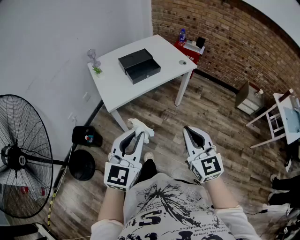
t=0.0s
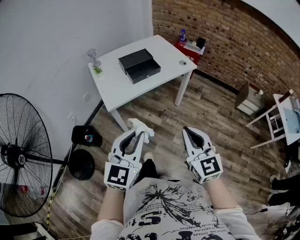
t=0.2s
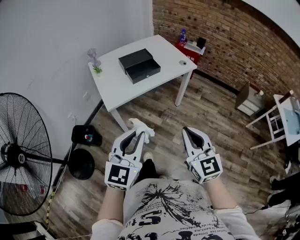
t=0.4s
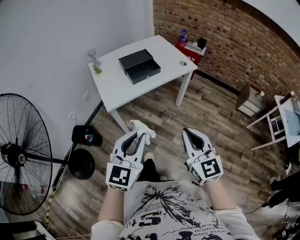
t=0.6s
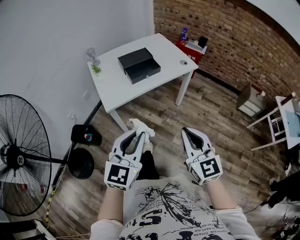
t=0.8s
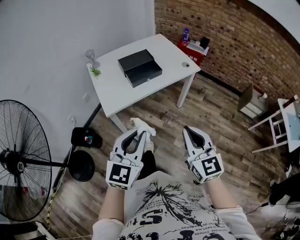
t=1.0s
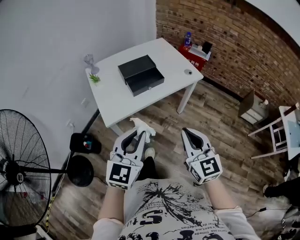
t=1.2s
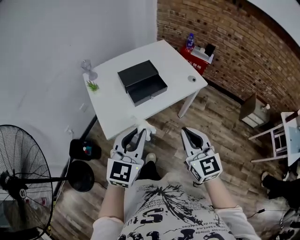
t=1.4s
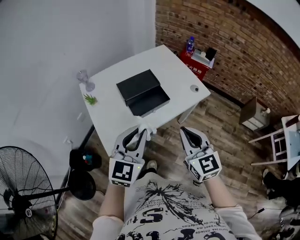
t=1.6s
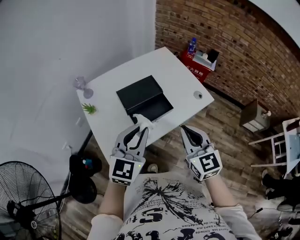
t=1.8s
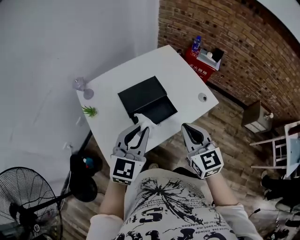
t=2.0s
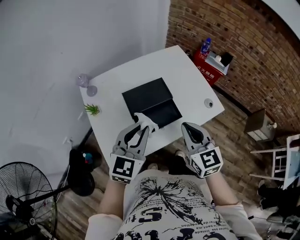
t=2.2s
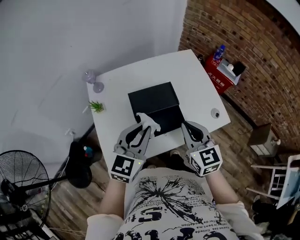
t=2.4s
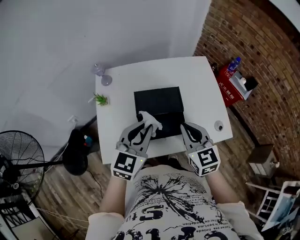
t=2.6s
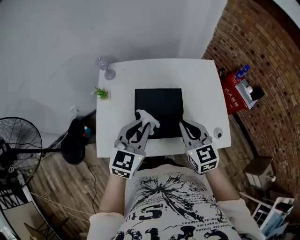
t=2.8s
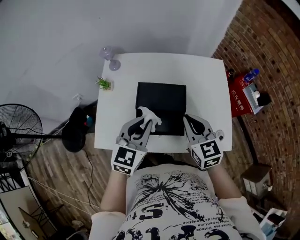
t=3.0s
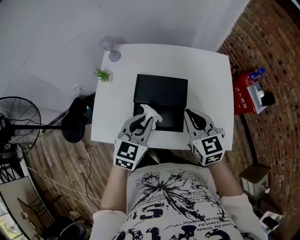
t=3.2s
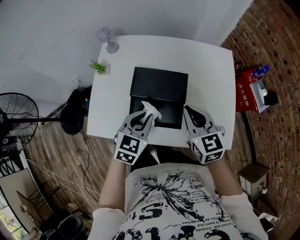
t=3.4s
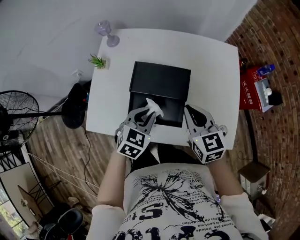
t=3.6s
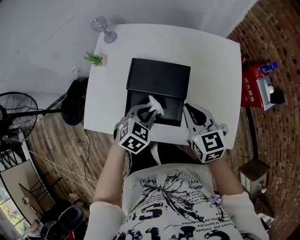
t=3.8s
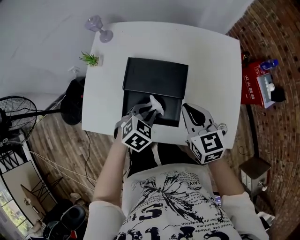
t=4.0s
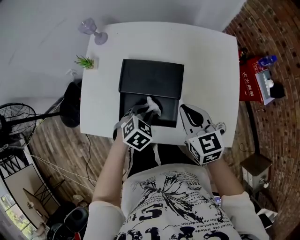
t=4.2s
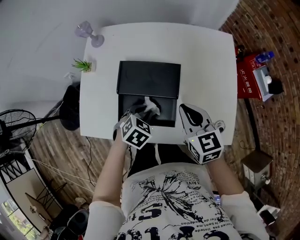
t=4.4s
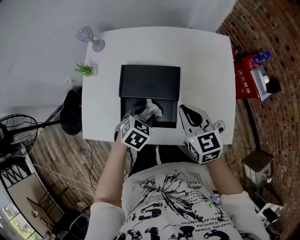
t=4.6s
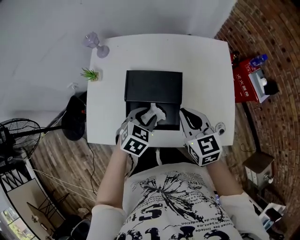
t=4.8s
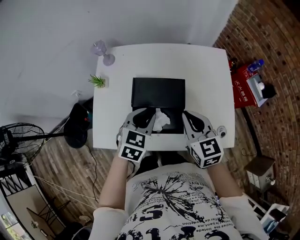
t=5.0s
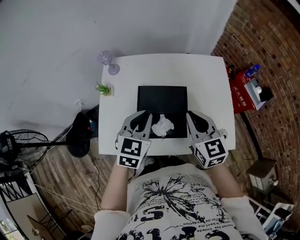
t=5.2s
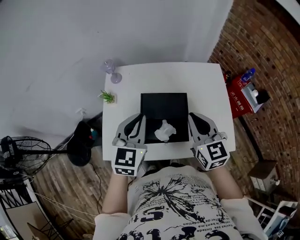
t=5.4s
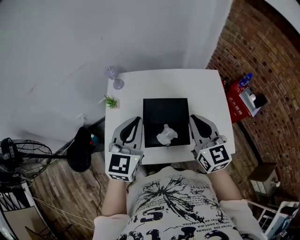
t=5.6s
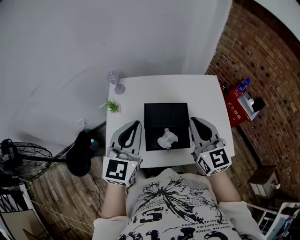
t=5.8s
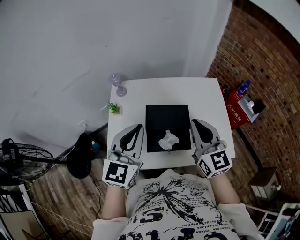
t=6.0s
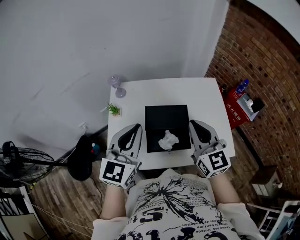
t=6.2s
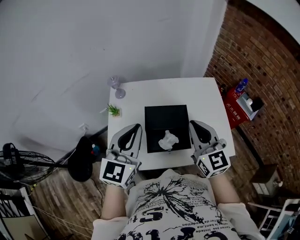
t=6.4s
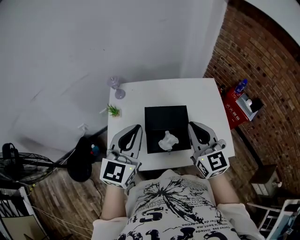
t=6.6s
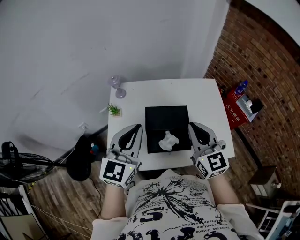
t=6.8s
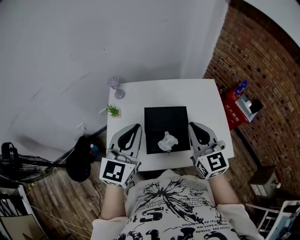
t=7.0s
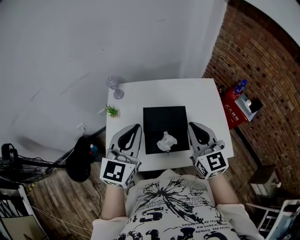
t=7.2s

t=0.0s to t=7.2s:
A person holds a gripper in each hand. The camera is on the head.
t=0.0s to t=1.4s: The two grippers go roughly 25 cm forward.
t=1.4s to t=2.8s: The left gripper ends up roughly 40 cm from where it was, and rotates roughly 30 degrees, while the right gripper ends up about 40 cm from where it was, and swivels some 30 degrees.
t=2.8s to t=4.4s: The left gripper travels downward by roughly 25 cm, and points its fingers about 40 degrees further downward; the right gripper travels downward, to the right and forward by roughly 15 cm.
t=4.4s to t=5.8s: The right gripper shifts some 25 cm upward and to the left, and swivels roughly 30 degrees. Meanwhile the left gripper moves upward and to the left, roughly 40 cm, tips its fingers upward by approximately 60 degrees, and closes its fingers.
t=5.8s to t=7.2s: The grippers make only small movements.

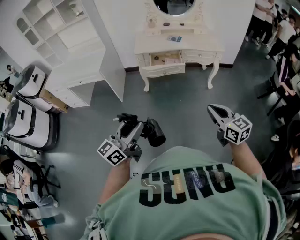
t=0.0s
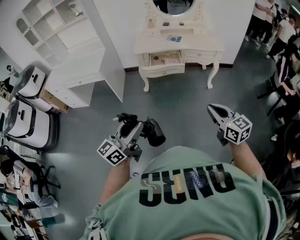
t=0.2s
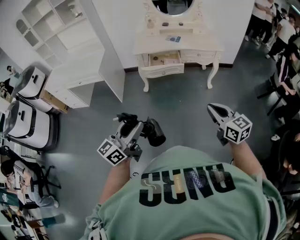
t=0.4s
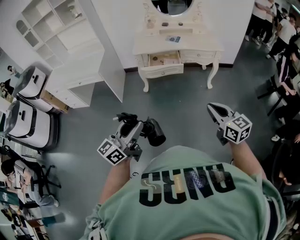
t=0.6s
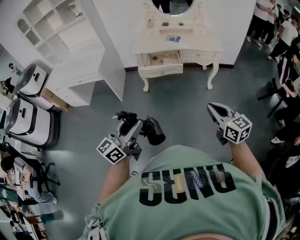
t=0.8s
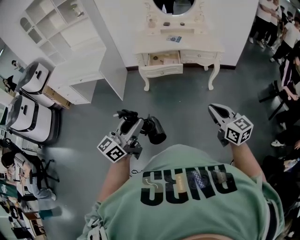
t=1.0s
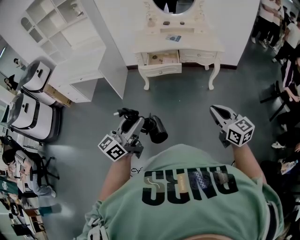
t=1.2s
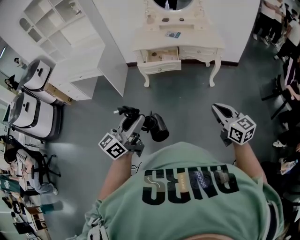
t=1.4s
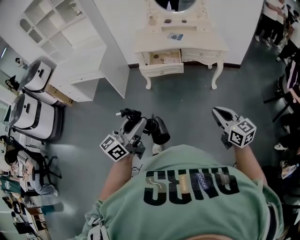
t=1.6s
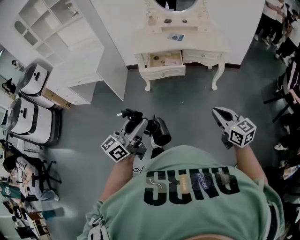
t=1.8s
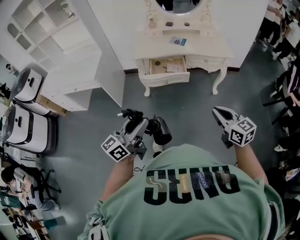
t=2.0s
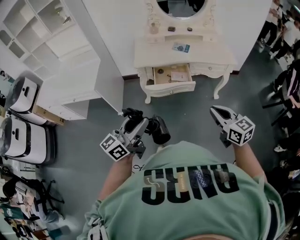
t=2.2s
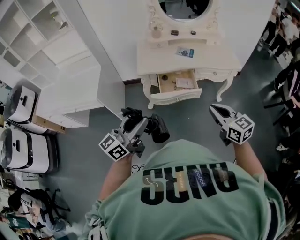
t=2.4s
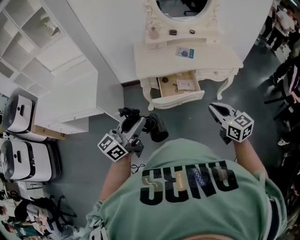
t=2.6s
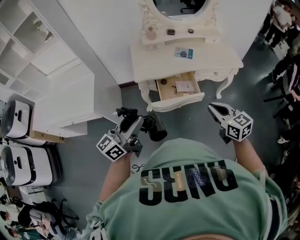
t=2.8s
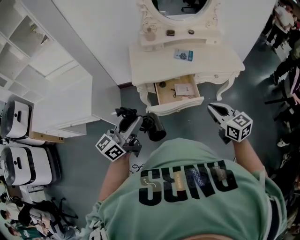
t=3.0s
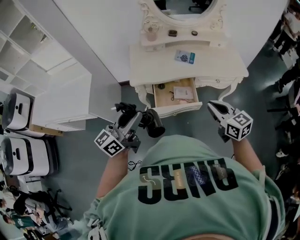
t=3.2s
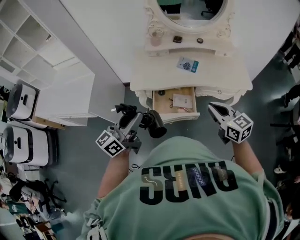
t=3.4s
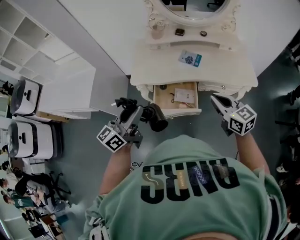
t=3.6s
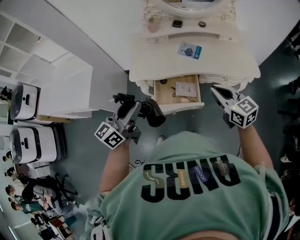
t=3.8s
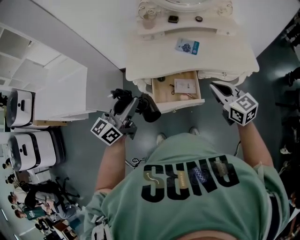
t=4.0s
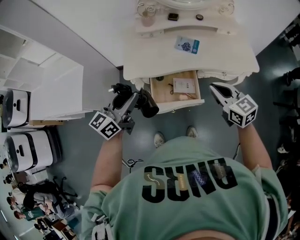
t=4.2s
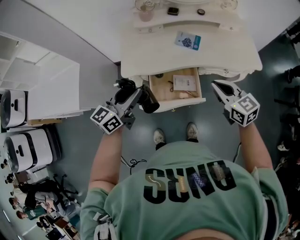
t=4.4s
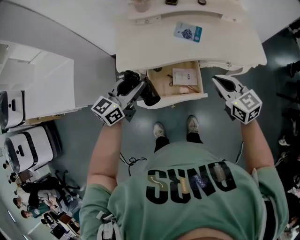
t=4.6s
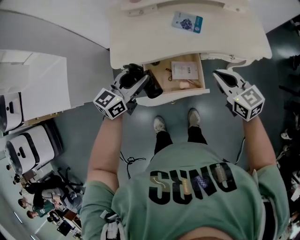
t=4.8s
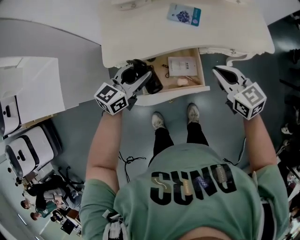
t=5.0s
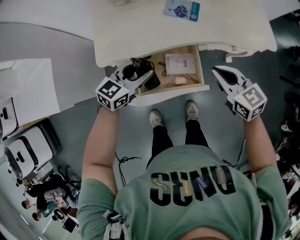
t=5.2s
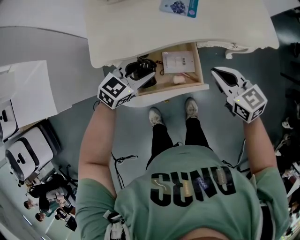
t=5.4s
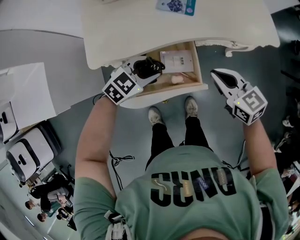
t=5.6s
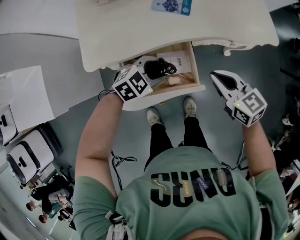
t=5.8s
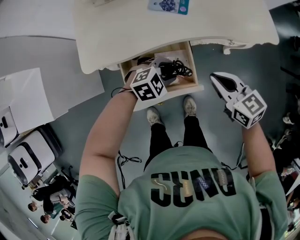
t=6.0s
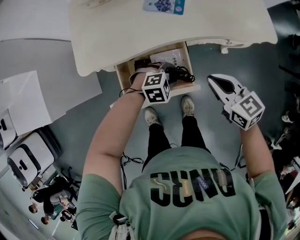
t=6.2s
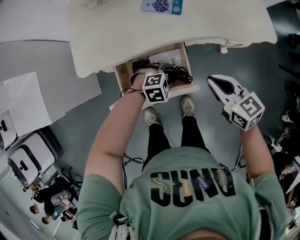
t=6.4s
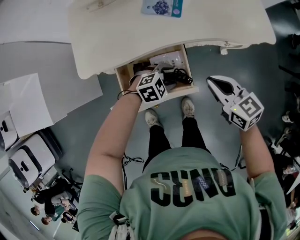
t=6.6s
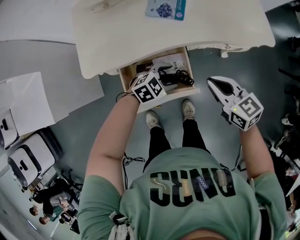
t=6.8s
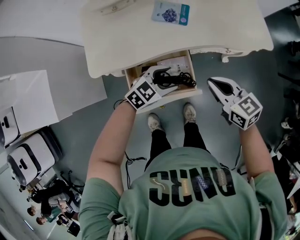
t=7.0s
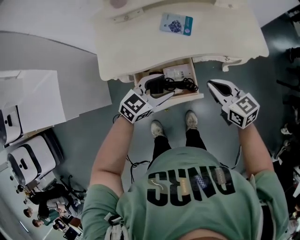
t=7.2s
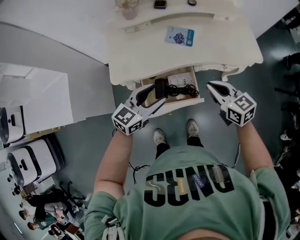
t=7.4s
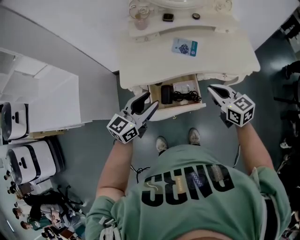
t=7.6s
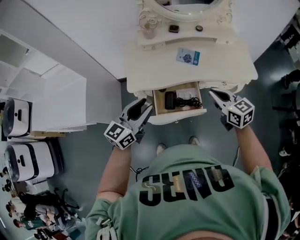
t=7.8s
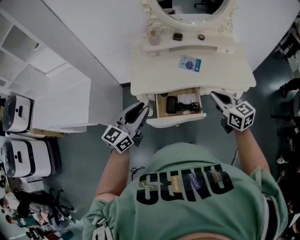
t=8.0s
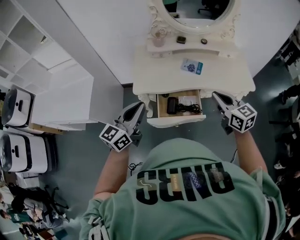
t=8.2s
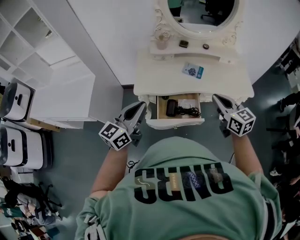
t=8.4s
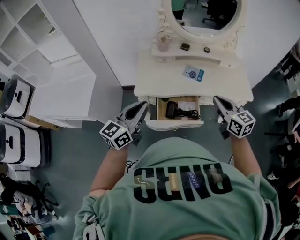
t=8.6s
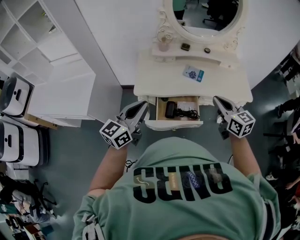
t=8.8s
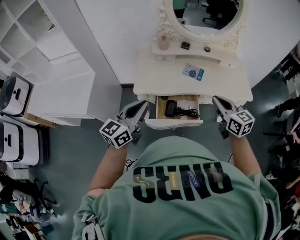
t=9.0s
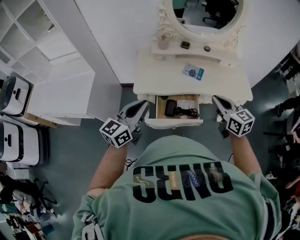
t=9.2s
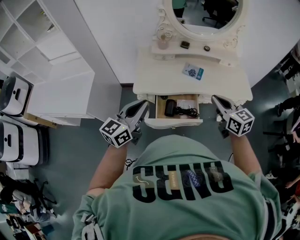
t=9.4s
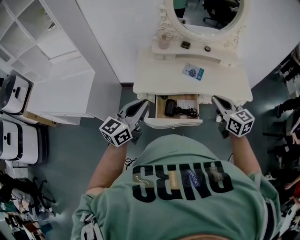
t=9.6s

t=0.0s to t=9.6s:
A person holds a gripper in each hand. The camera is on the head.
t=0.0s to t=1.6s: The left gripper goes some 15 cm to the right and forward; the right gripper is displaced to the right by some 10 cm.
t=1.6s to t=3.2s: The pair of grippers is taken forward and to the left, about 50 cm.
t=3.2s to t=4.8s: The grippers both shift forward and downward by approximately 25 cm. The left gripper swivels some 30 degrees.
t=4.8s to t=6.4s: The left gripper travels downward by approximately 30 cm, and points its fingers roughly 50 degrees further downward. Meanwhile the right gripper goes roughly 10 cm downward.
t=6.4s to t=8.0s: The left gripper shifts about 40 cm upward, tips its fingers upward by about 60 degrees, and closes up. The right gripper moves upward, approximately 25 cm.
t=8.0s to t=9.6s: The grippers make only small movements.

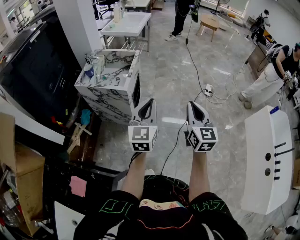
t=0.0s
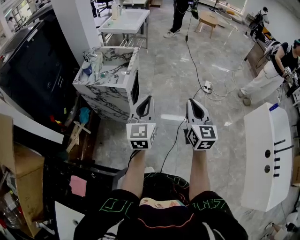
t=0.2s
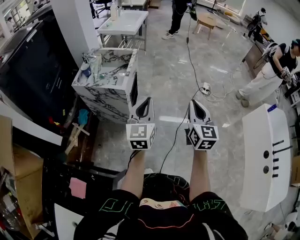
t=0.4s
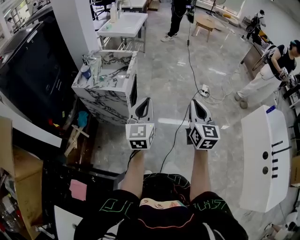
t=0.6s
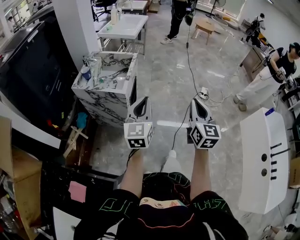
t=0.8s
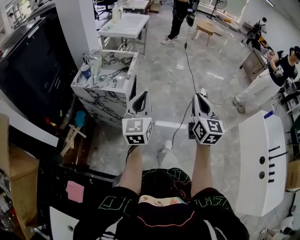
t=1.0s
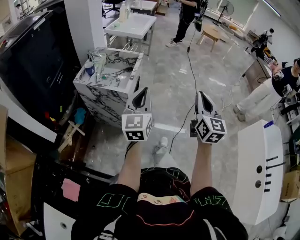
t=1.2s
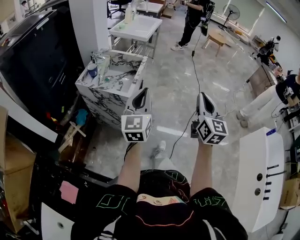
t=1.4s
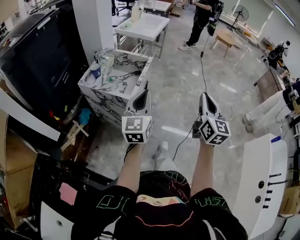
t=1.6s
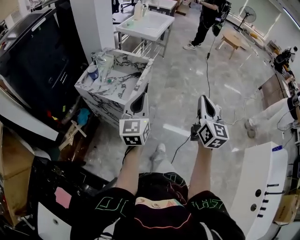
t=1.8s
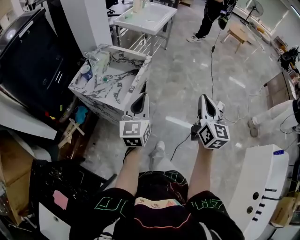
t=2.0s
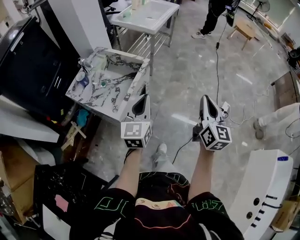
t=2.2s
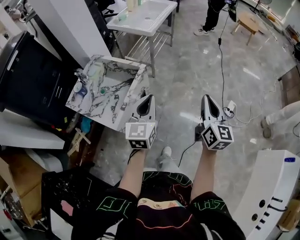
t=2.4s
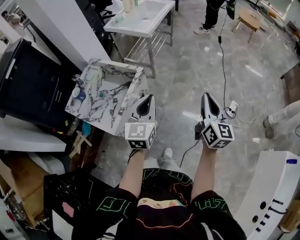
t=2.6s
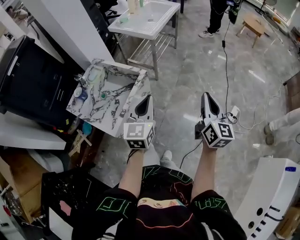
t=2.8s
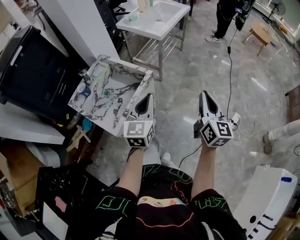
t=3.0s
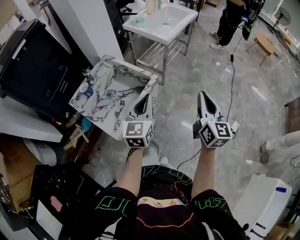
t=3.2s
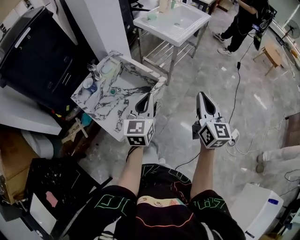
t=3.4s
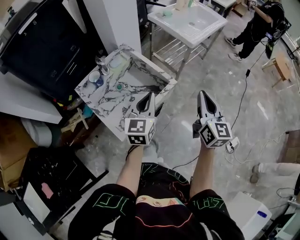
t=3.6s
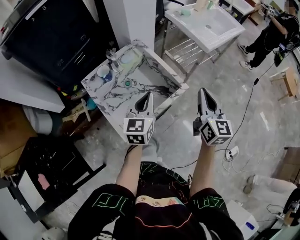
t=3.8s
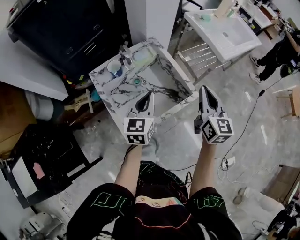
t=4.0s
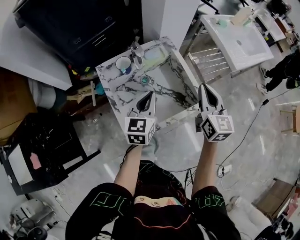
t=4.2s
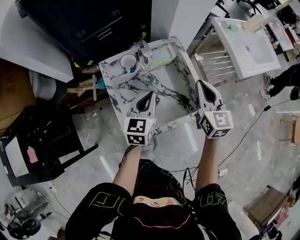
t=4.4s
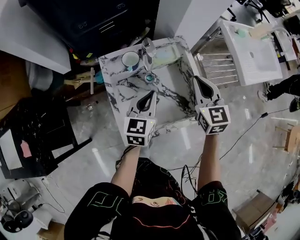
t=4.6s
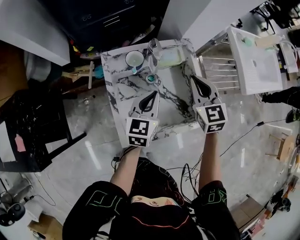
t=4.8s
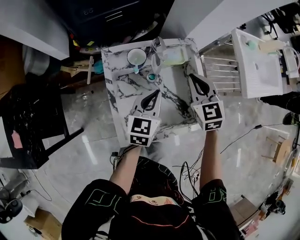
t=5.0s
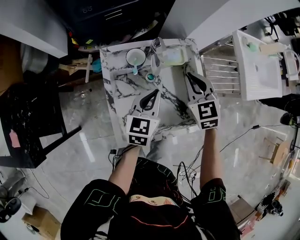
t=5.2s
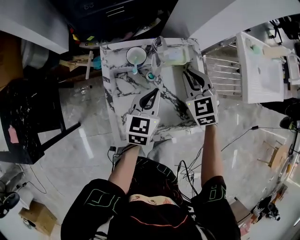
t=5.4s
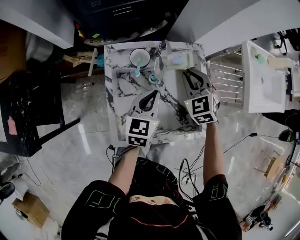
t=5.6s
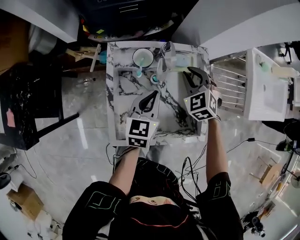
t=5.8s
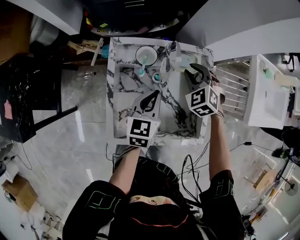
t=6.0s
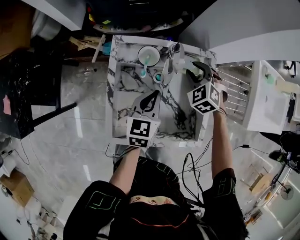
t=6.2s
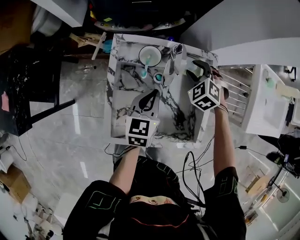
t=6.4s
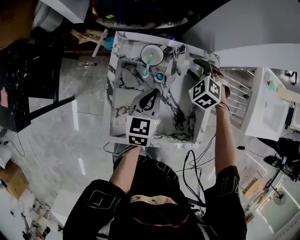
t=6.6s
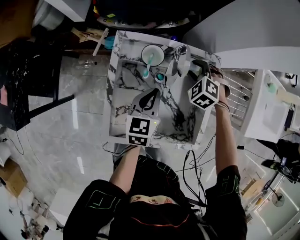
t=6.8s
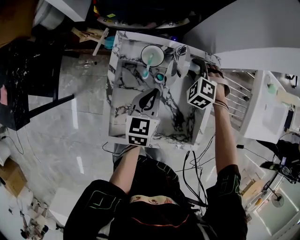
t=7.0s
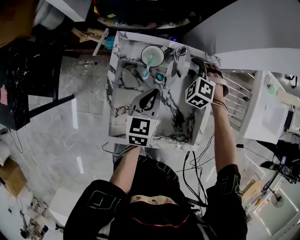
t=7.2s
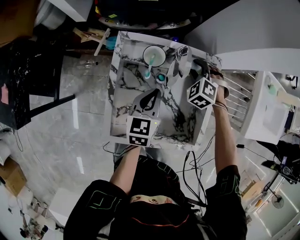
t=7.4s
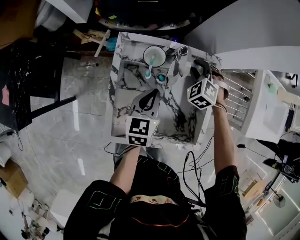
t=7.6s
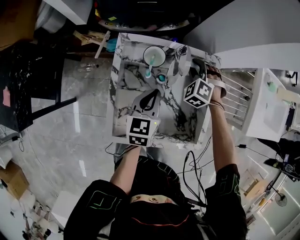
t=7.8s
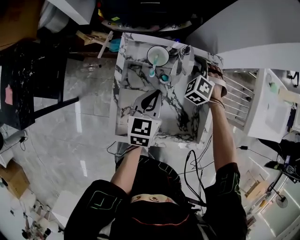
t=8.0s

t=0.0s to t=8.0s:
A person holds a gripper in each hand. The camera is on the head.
t=0.0s to t=1.6s: The left gripper moves forward and to the left, about 15 cm, while the right gripper shifts some 15 cm forward.
t=1.6s to t=3.2s: The two grippers go about 35 cm forward. The right gripper swivels approximately 20 degrees.
t=3.2s to t=4.8s: The left gripper moves roughly 35 cm, and swivels about 40 degrees, while the right gripper ends up roughly 50 cm from where it was, and rotates approximately 70 degrees.
t=4.8s to t=6.4s: The left gripper heads downward, covering about 5 cm, and rotates approximately 20 degrees; the right gripper goes about 20 cm downward and forward, twists some 50 degrees counterclockwise, seen from behind, and opens.
t=6.4s to t=8.0s: The grippers make only small movements.
